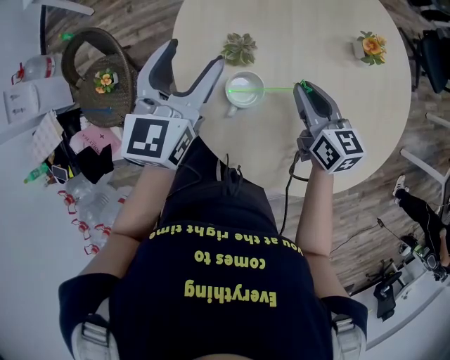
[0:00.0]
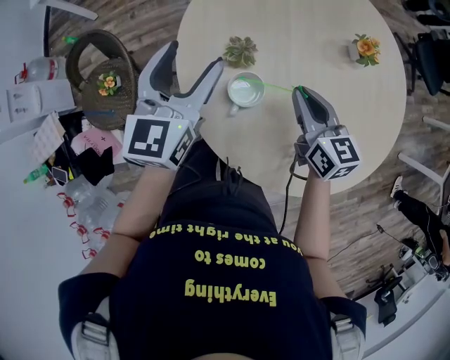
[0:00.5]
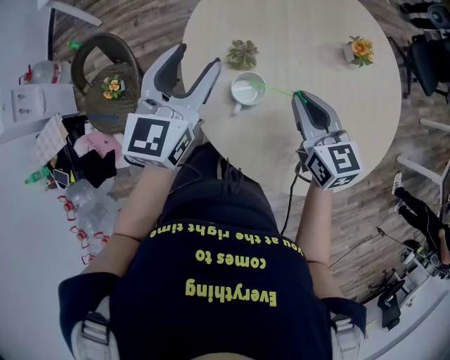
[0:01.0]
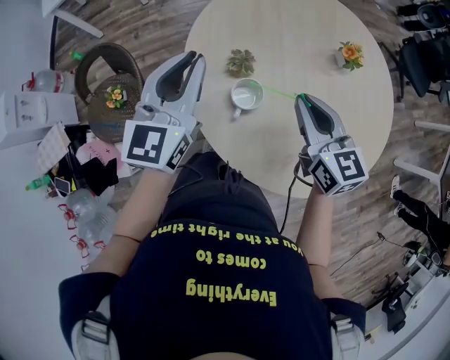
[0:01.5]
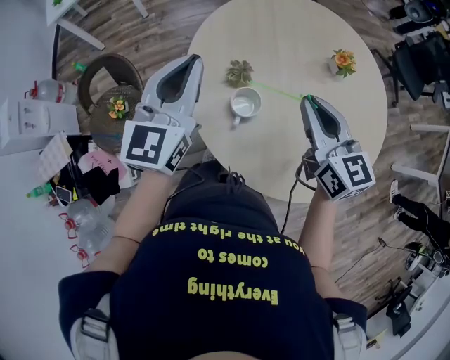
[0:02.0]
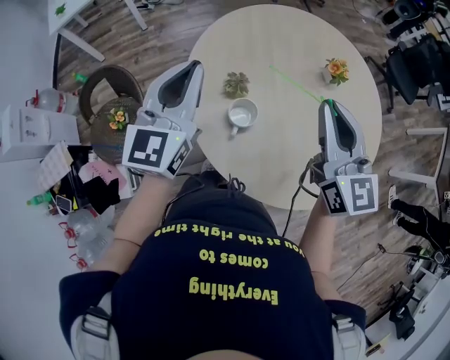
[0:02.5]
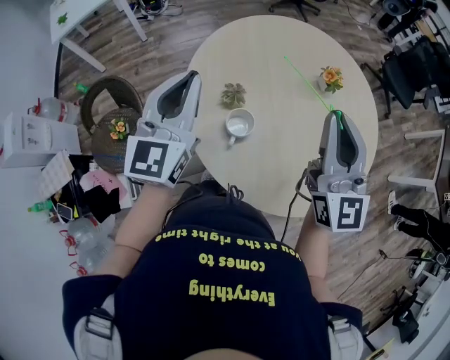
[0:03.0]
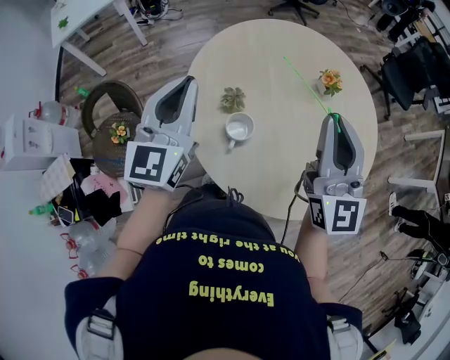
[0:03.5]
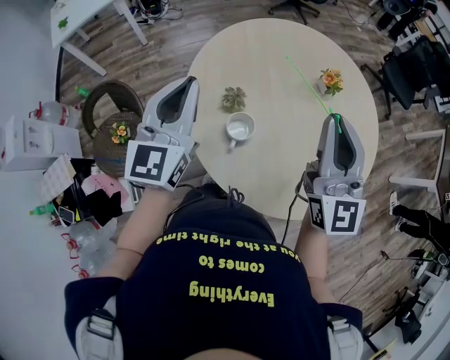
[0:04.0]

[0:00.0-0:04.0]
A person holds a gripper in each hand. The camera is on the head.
0:00.0 to 0:02.0: The right gripper shifts some 20 cm upward. The left gripper goes about 15 cm upward and backward, and closes up.
0:02.0 to 0:04.0: The right gripper heads upward, covering approximately 10 cm, and rotates approximately 40 degrees.

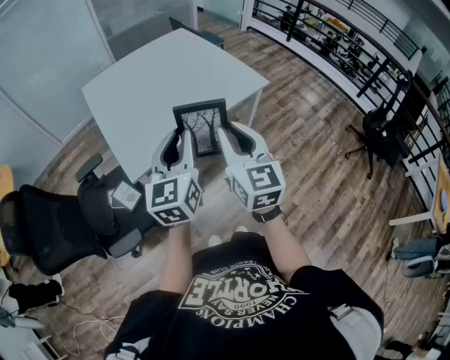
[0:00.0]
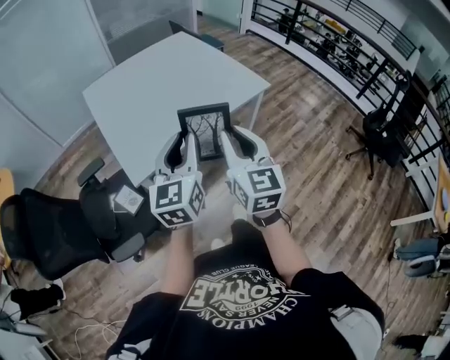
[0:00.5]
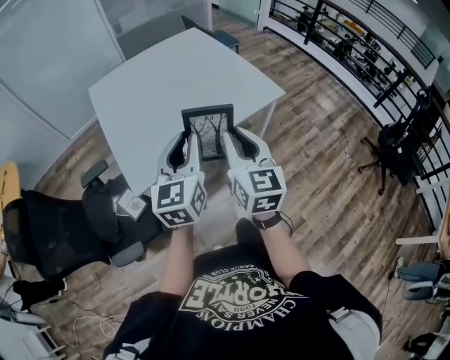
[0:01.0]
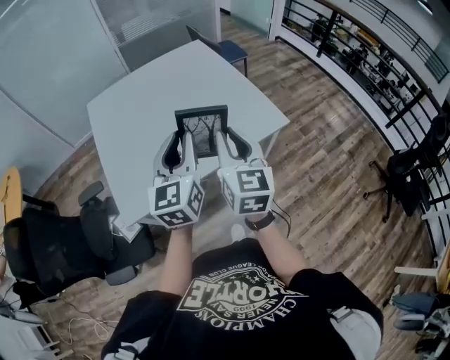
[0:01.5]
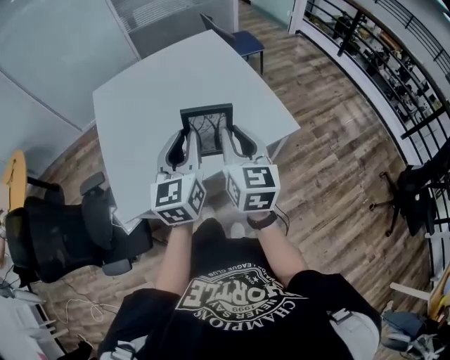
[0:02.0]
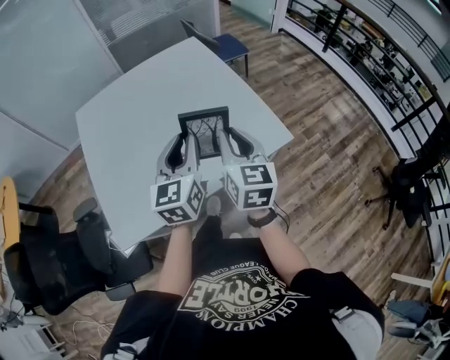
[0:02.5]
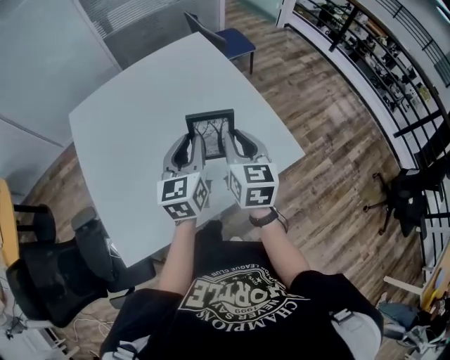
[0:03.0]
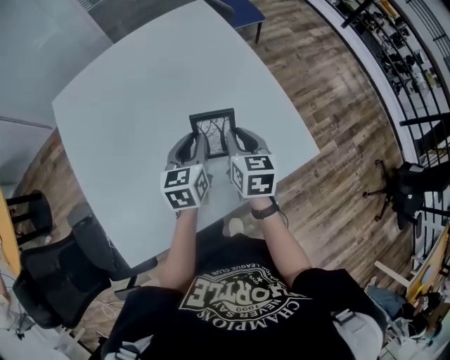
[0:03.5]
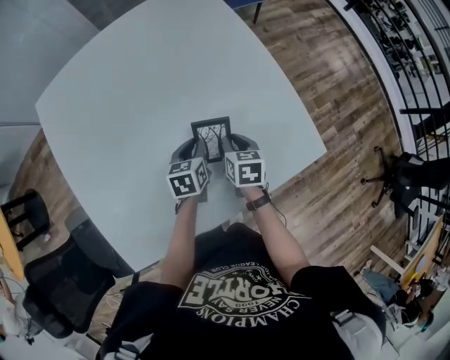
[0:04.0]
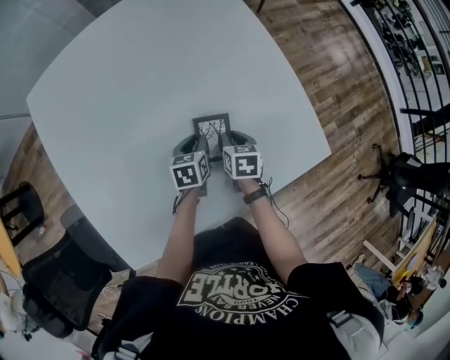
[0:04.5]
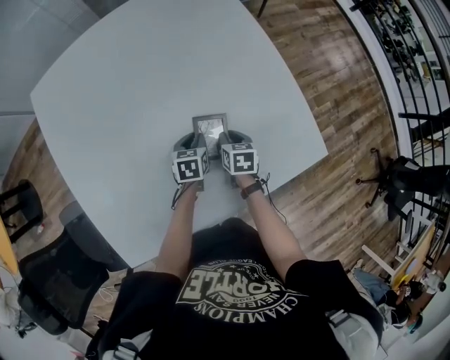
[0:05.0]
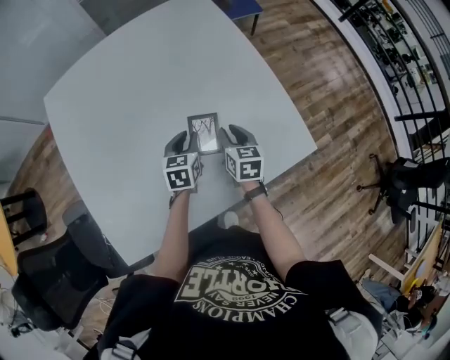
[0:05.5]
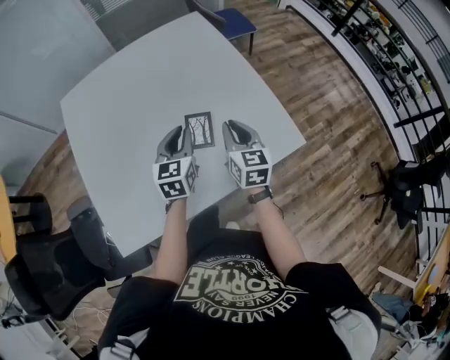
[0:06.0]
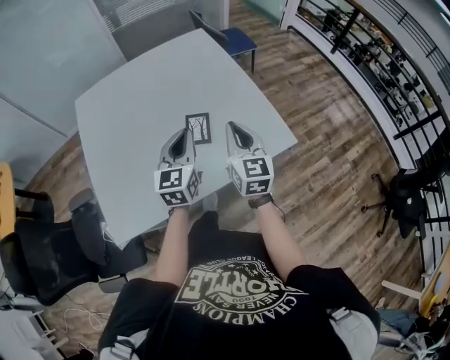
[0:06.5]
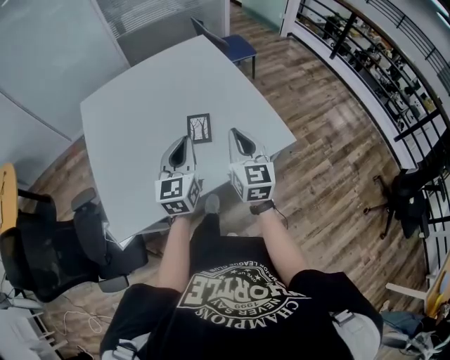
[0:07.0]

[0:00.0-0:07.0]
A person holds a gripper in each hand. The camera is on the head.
0:00.0 to 0:02.0: Both grippers travel together forward and to the right, approximately 40 cm.
0:02.0 to 0:03.5: The two grippers go approximately 40 cm forward and downward. The right gripper changes its angle by about 30 degrees. The left gripper turns by approximately 30 degrees.
0:03.5 to 0:05.0: Both grippers travel together downward, approximately 25 cm. The right gripper turns by about 20 degrees. The left gripper swivels some 20 degrees.
0:05.0 to 0:07.0: Both grippers travel together upward and backward, some 50 cm. The right gripper tips its fingers upward by about 50 degrees; the left gripper points its fingers roughly 50 degrees further upward.

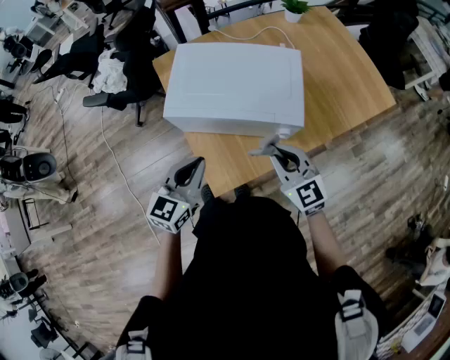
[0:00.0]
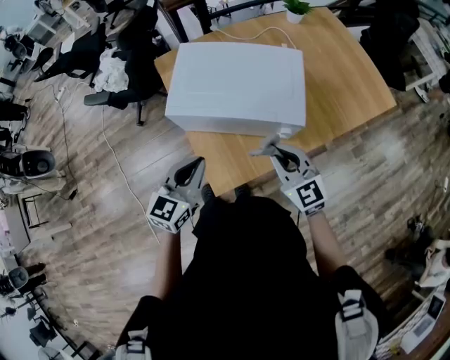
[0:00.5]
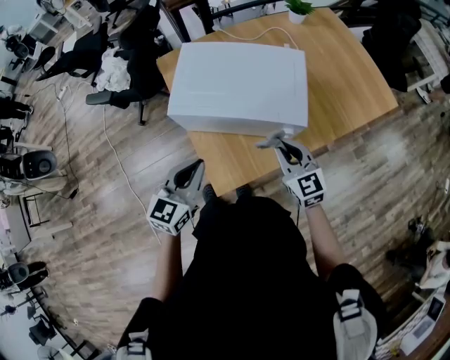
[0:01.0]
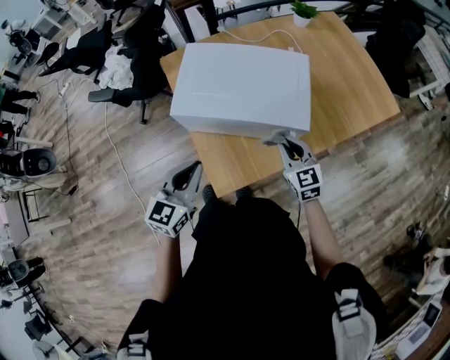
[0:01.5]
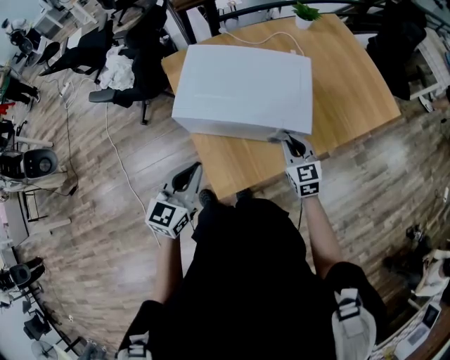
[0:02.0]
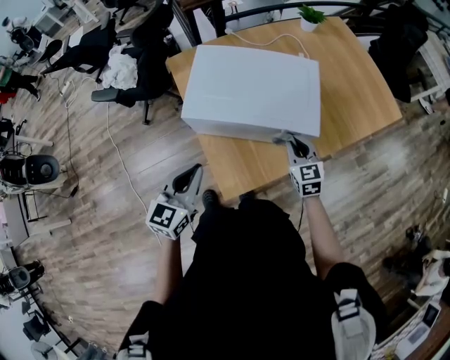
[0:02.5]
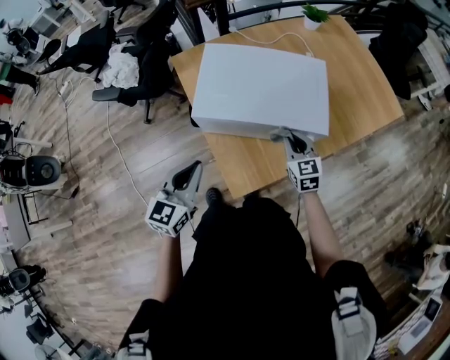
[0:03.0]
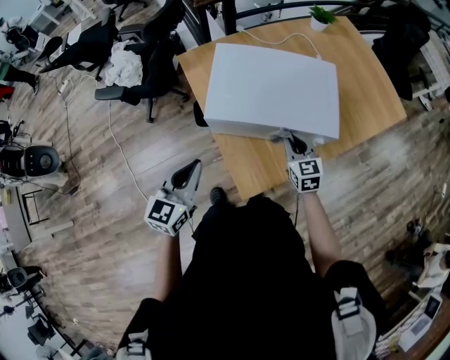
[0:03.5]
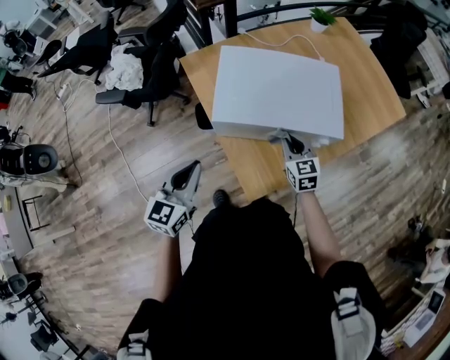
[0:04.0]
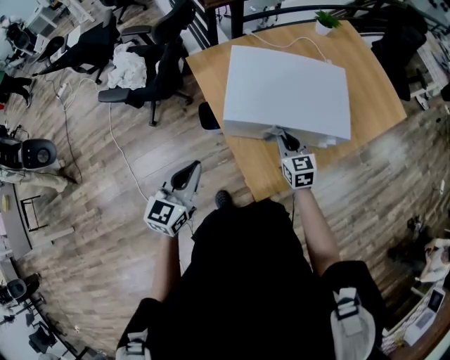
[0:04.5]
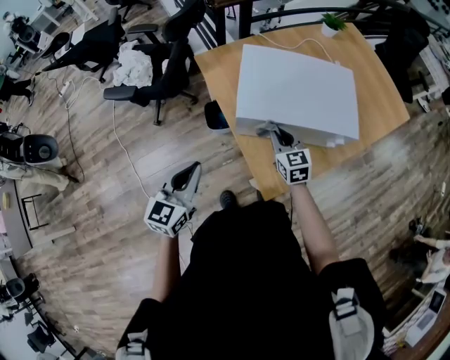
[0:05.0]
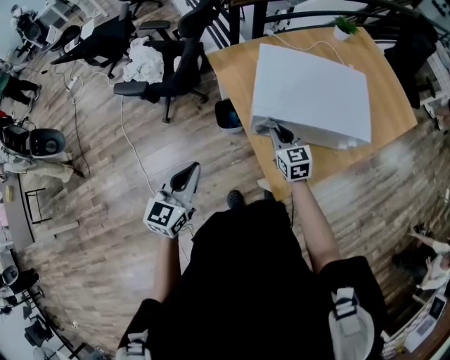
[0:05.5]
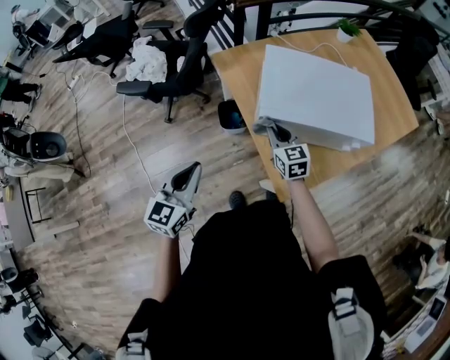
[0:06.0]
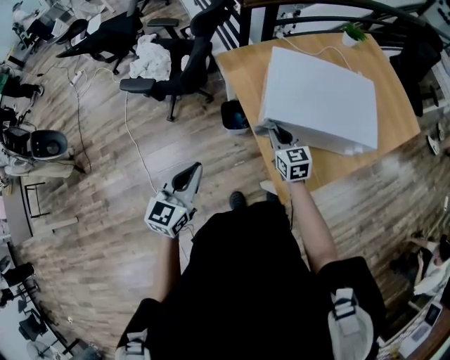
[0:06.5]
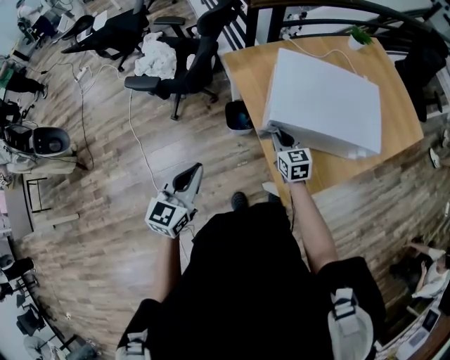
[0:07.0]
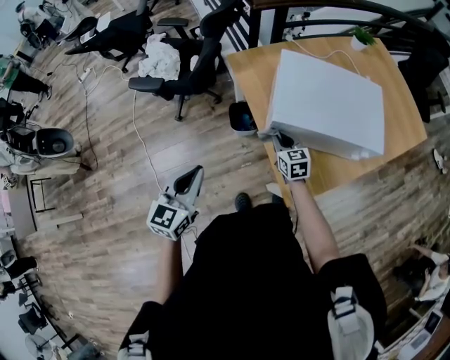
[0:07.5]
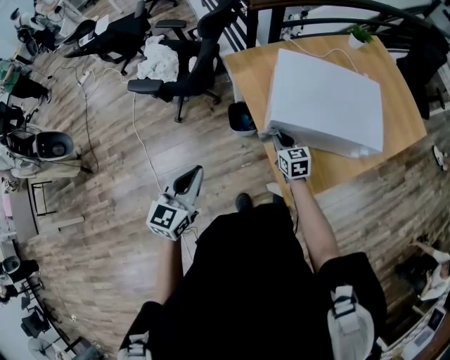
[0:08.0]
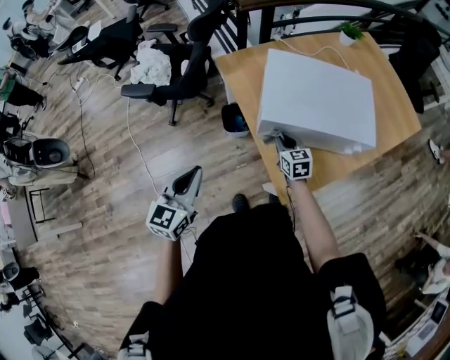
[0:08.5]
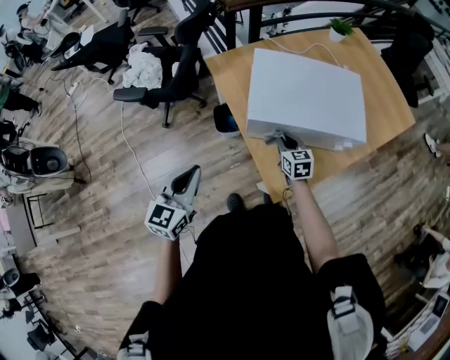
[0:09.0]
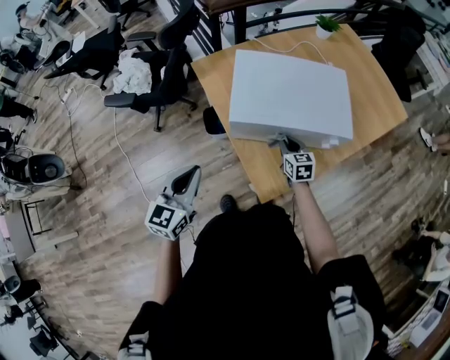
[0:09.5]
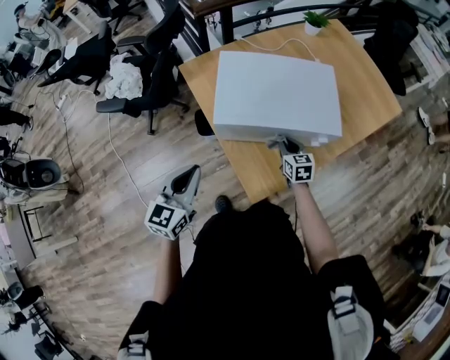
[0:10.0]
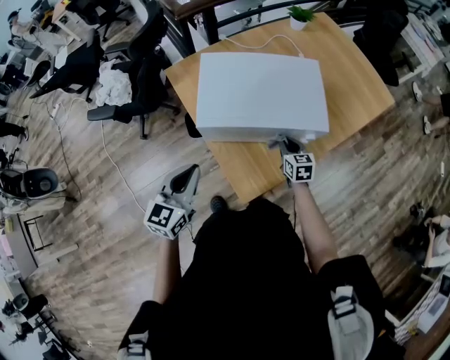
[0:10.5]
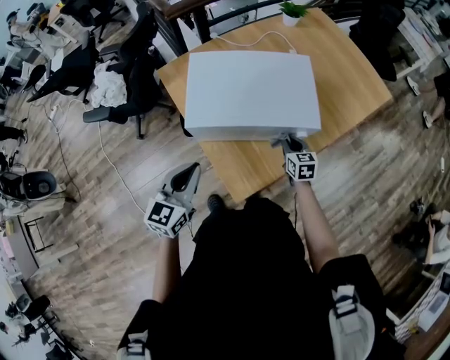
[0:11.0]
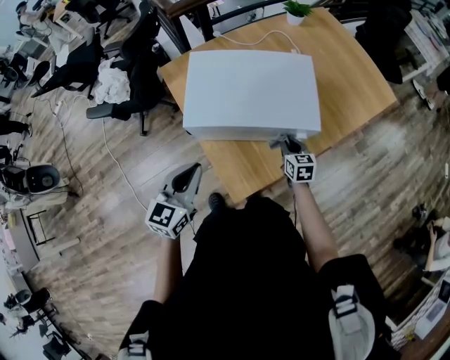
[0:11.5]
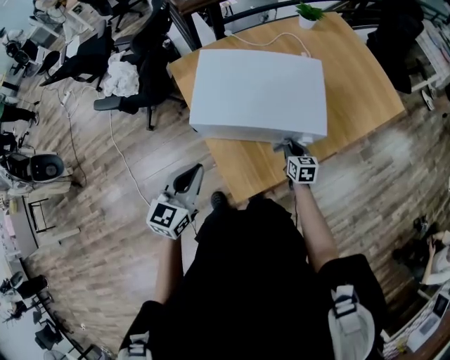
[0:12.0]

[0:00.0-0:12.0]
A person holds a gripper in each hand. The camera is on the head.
0:00.0 to 0:02.0: The right gripper travels downward and forward by about 10 cm.
0:02.0 to 0:04.0: The grippers both shift to the left by roughly 15 cm.
0:04.0 to 0:06.0: Both grippers travel together to the left, approximately 15 cm.
0:06.0 to 0:08.0: The right gripper goes approximately 5 cm downward.
0:08.0 to 0:10.0: Both grippers travel together to the right, roughly 20 cm.
0:10.0 to 0:12.0: Both grippers move to the right, some 10 cm.

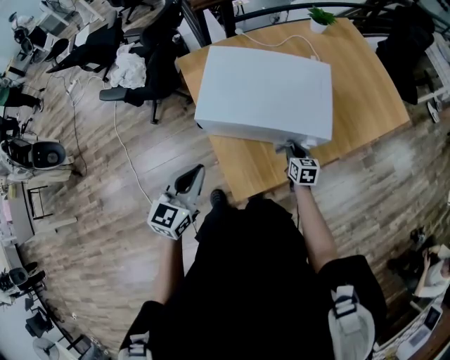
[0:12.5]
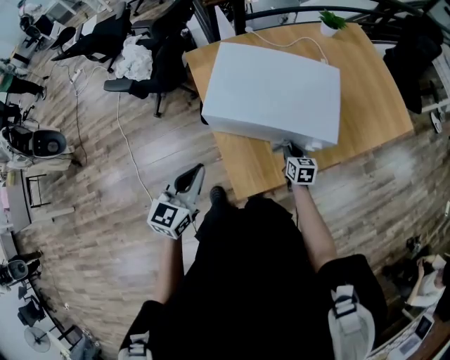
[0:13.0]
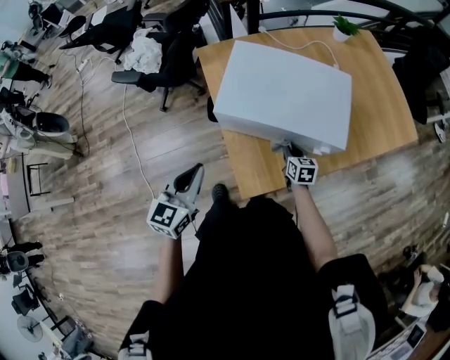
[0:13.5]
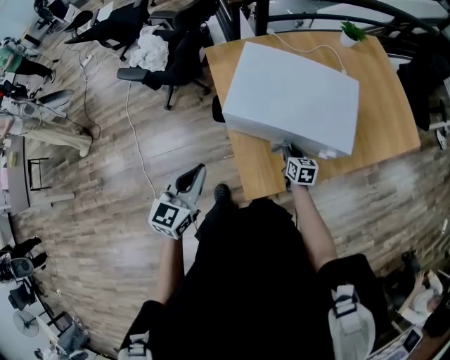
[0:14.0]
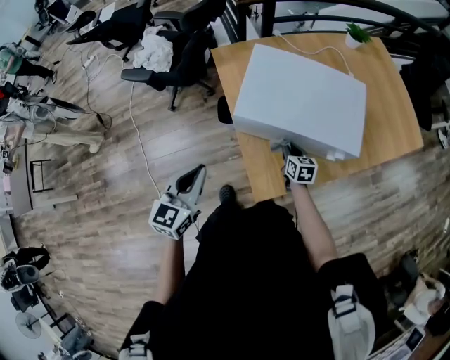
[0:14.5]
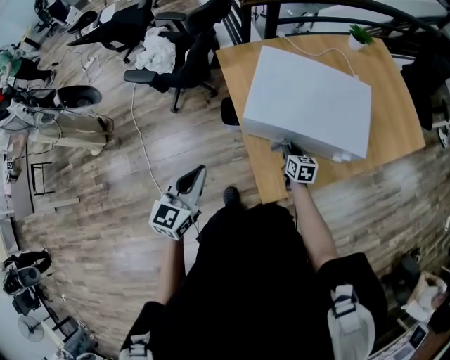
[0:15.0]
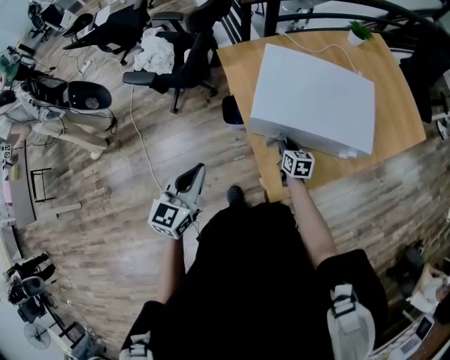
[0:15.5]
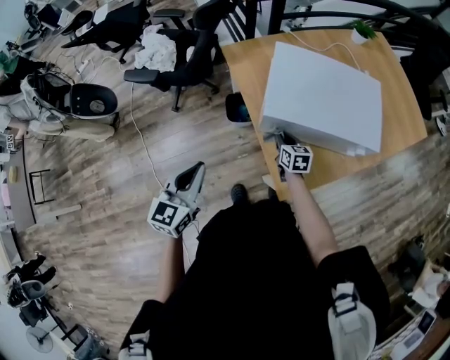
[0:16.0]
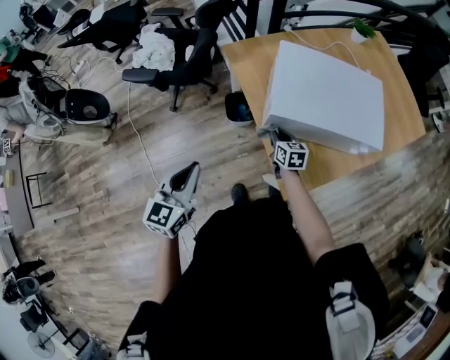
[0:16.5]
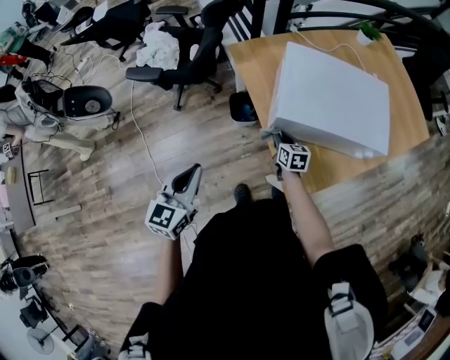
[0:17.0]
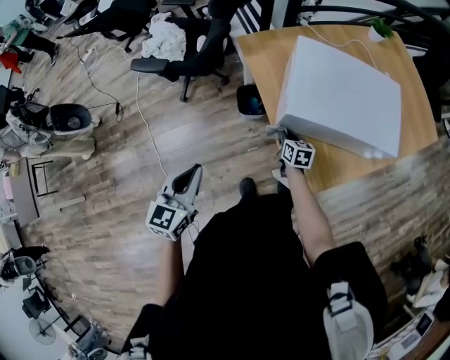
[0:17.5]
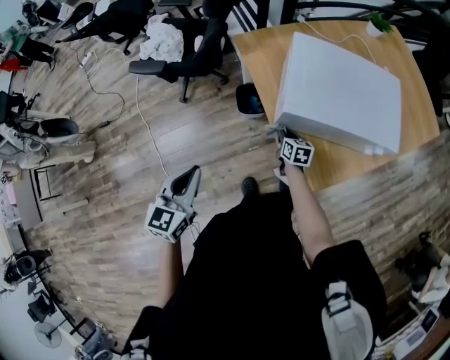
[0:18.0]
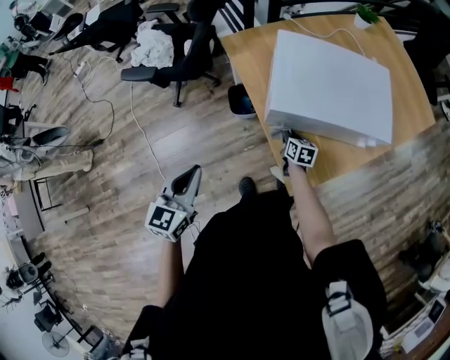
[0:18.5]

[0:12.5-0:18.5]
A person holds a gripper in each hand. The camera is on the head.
0:12.5 to 0:14.5: Both grippers move to the left, about 15 cm.
0:14.5 to 0:16.5: The grippers both shift to the left by approximately 15 cm.
0:16.5 to 0:18.5: The right gripper shifts about 10 cm downward and to the right.
